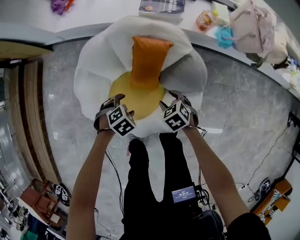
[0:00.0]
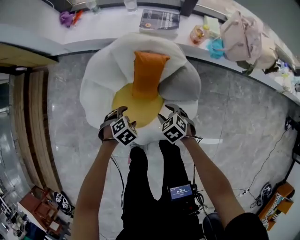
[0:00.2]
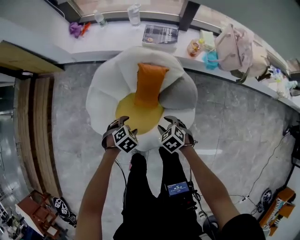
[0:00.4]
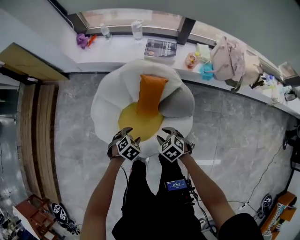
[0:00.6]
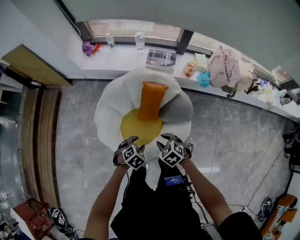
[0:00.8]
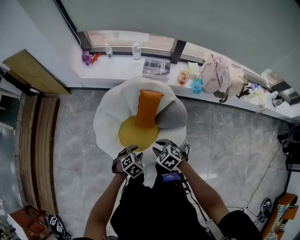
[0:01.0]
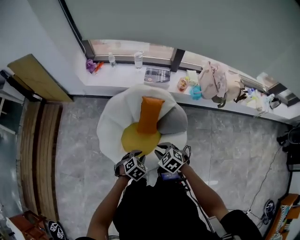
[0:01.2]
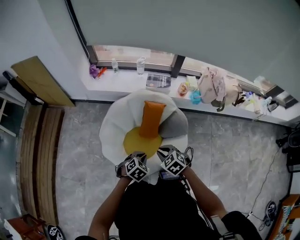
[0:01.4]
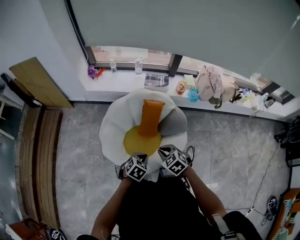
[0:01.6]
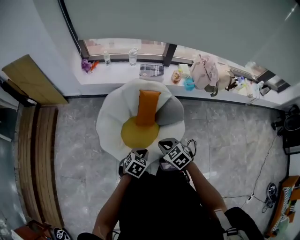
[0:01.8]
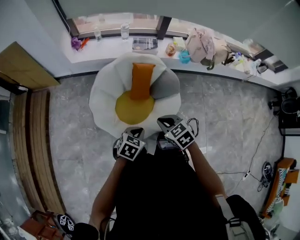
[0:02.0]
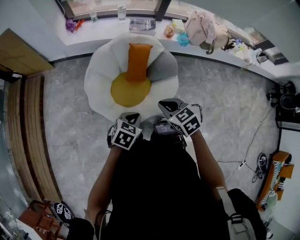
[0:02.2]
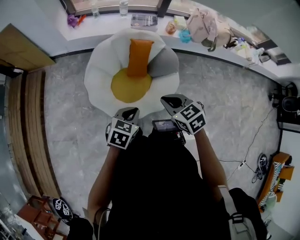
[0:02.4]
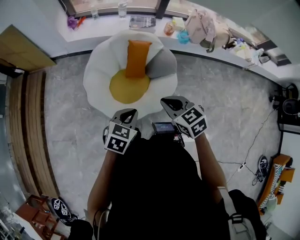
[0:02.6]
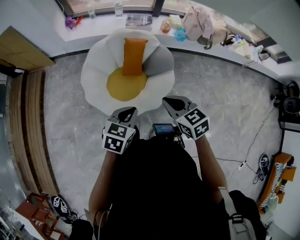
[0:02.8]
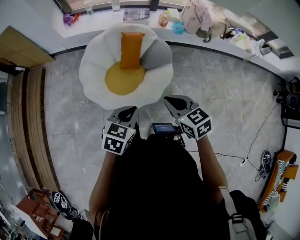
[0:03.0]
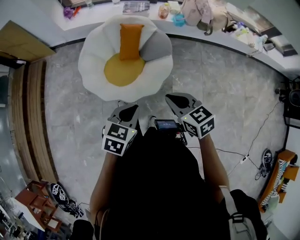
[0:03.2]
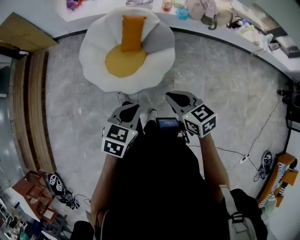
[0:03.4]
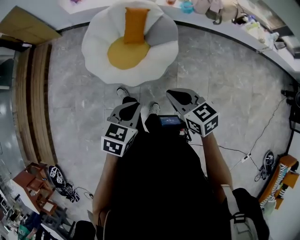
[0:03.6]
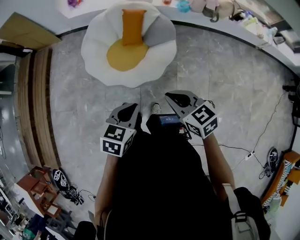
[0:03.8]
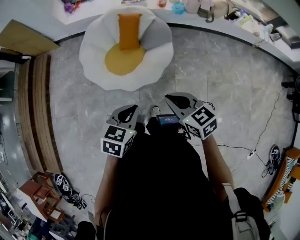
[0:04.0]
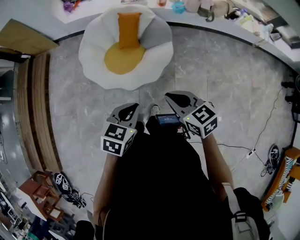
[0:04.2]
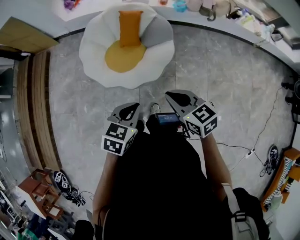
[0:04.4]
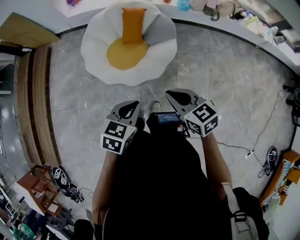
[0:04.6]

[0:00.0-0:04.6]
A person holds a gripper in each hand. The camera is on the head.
0:00.0 to 0:01.6: Both grippers move upward, approximately 30 cm. The left gripper changes its angle by some 30 degrees, and closes up. The right gripper closes.
0:01.6 to 0:03.0: The right gripper goes approximately 20 cm backward, to the right and upward, and swivels approximately 30 degrees. Meanwhile the left gripper is displaced backward, upward and to the right by approximately 20 cm.
0:03.0 to 0:04.6: The two grippers go some 15 cm backward and to the right.

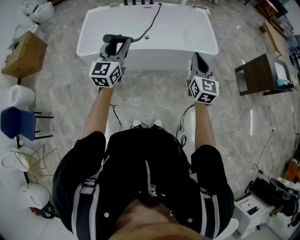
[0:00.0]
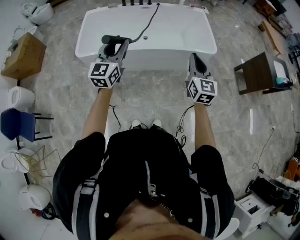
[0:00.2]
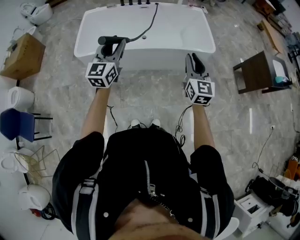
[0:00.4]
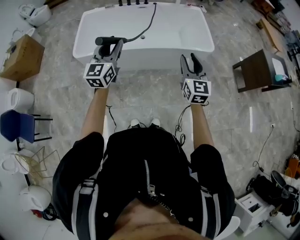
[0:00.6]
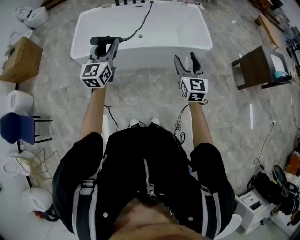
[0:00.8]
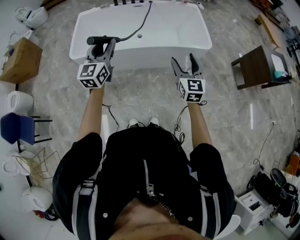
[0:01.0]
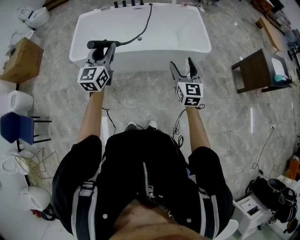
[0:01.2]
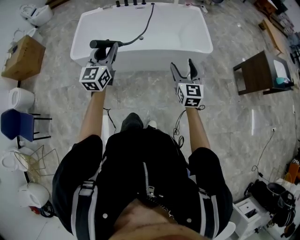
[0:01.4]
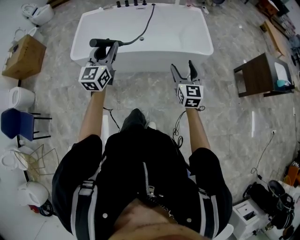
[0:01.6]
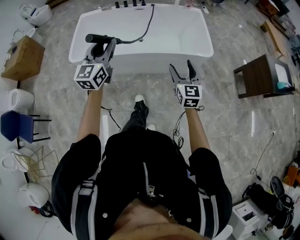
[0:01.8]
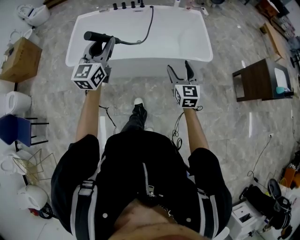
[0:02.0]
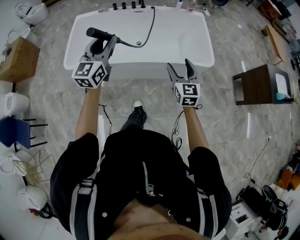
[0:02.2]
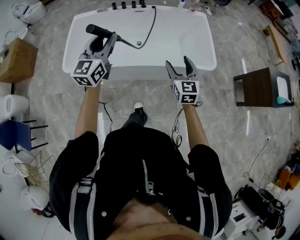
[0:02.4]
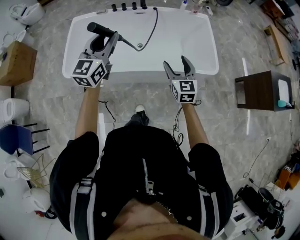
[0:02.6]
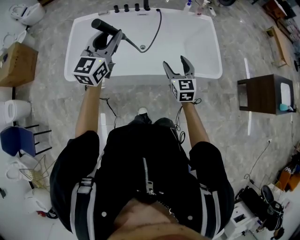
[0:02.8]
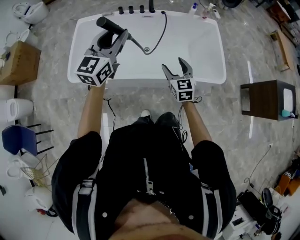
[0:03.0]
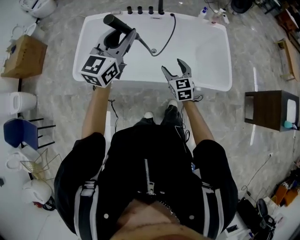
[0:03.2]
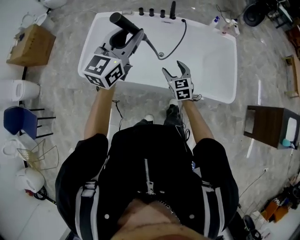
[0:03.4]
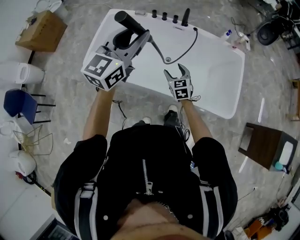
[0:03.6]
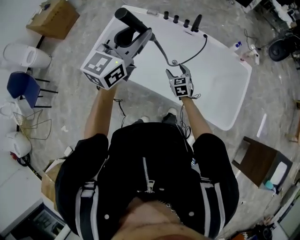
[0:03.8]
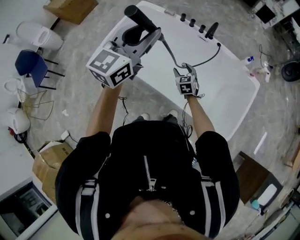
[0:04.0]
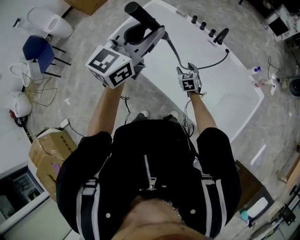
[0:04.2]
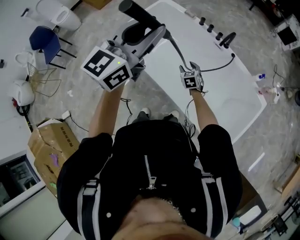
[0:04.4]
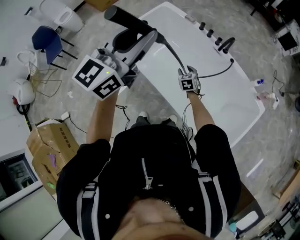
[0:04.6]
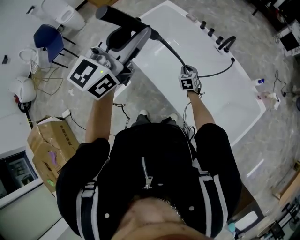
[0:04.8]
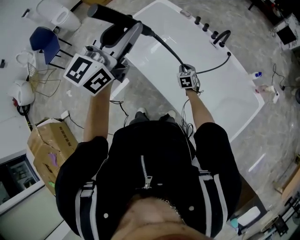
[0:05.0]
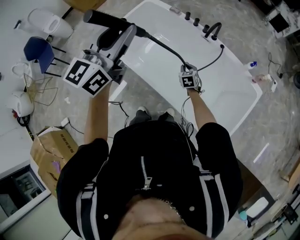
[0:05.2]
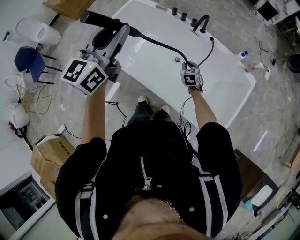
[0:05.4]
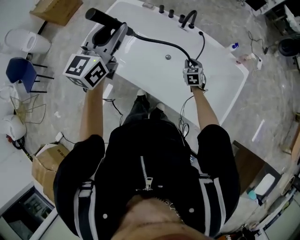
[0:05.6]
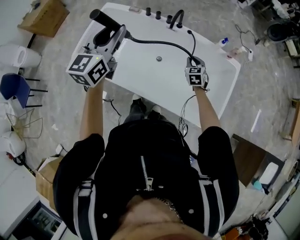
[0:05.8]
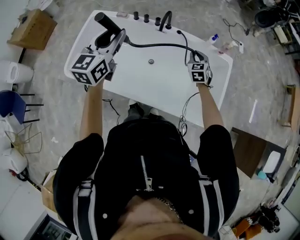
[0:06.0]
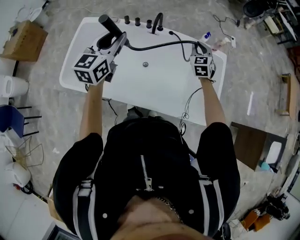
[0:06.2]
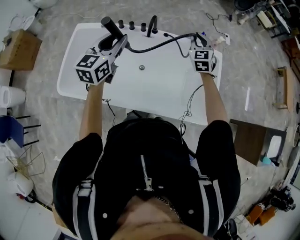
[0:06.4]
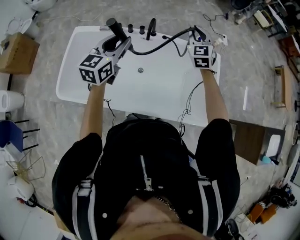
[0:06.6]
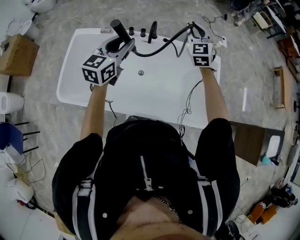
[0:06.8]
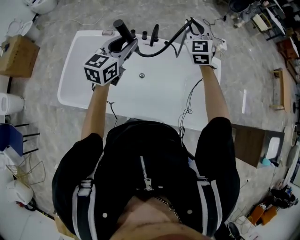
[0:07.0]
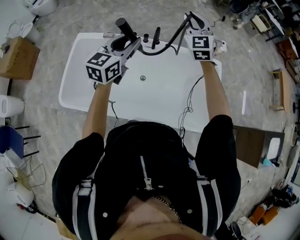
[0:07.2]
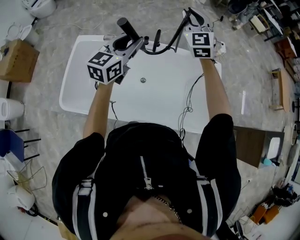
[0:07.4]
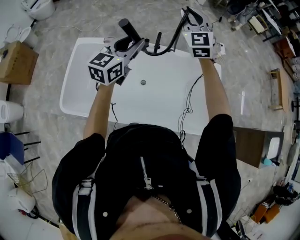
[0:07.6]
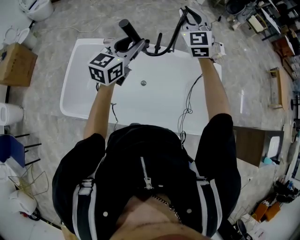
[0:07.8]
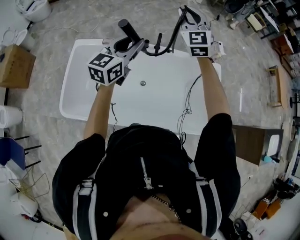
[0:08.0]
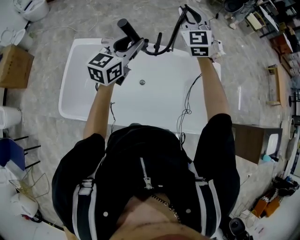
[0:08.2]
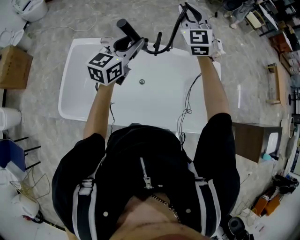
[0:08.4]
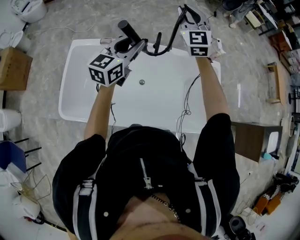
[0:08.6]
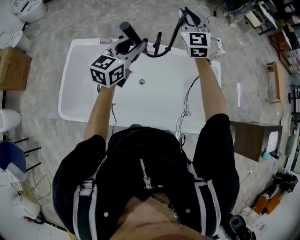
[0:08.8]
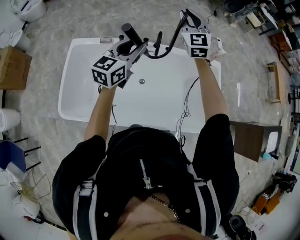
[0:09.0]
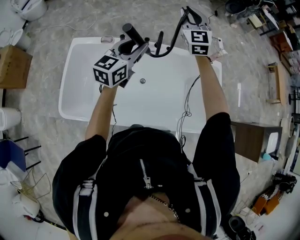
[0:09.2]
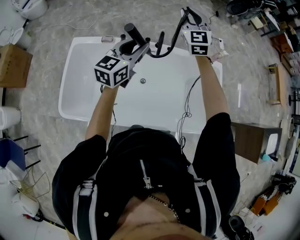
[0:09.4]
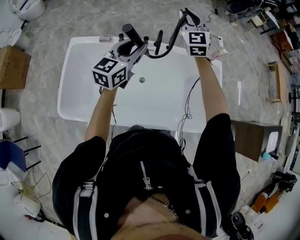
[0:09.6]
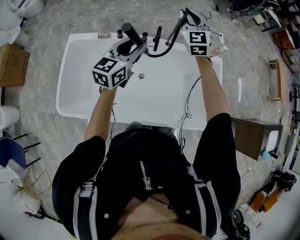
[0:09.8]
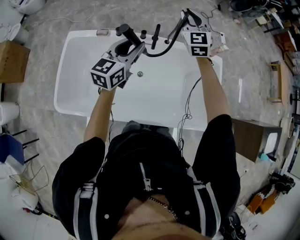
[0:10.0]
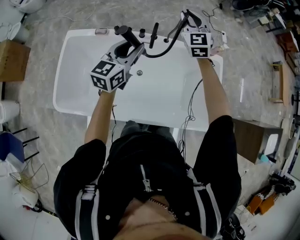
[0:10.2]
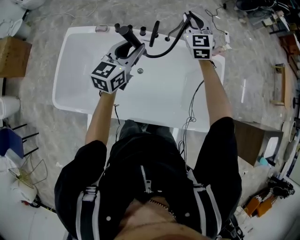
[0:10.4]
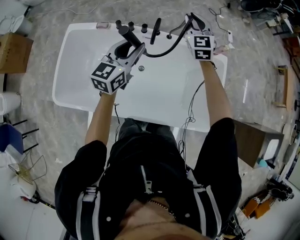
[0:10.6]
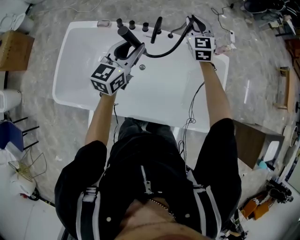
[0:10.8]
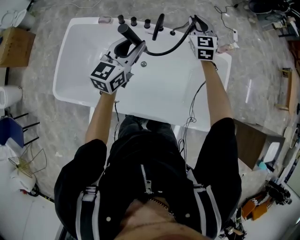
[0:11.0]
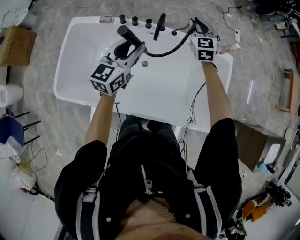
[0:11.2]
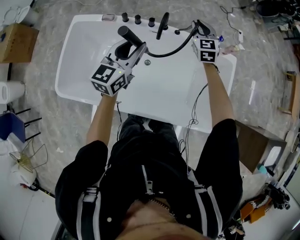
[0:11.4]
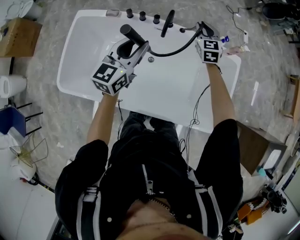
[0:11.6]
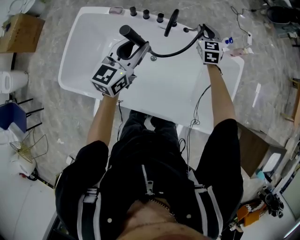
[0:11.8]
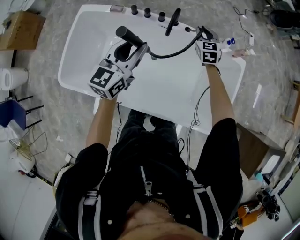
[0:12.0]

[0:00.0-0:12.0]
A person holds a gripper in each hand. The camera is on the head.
0:00.0 to 0:01.6: The left gripper changes place by some 5 cm. Meanwhile the right gripper moves downward, approximately 5 cm, and opens.
0:01.6 to 0:03.0: The right gripper is displaced forward and to the left by some 35 cm. The left gripper moves forward, approximately 35 cm.
0:03.0 to 0:04.4: The right gripper moves about 30 cm, and swivels about 50 degrees, while the left gripper travels upward by some 10 cm, and turns by approximately 30 degrees.
0:04.4 to 0:06.0: The right gripper ends up about 35 cm from where it was, swivels roughly 30 degrees, and closes its fingers, while the left gripper changes place by some 15 cm.
0:06.0 to 0:07.6: The left gripper heads forward, covering approximately 15 cm, and turns by approximately 20 degrees, while the right gripper travels upward and to the left by about 35 cm, and tilts its fingers roughly 30 degrees upward.
0:07.6 to 0:09.0: The left gripper changes place by approximately 5 cm; the right gripper shifts about 5 cm forward.
0:09.0 to 0:10.4: The right gripper shifts some 10 cm downward; the left gripper shifts some 5 cm downward.
0:10.4 to 0:12.0: The right gripper moves downward, approximately 20 cm, and rotates about 20 degrees.

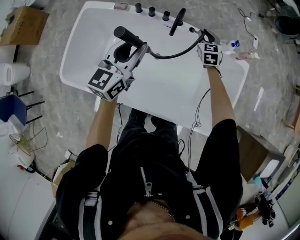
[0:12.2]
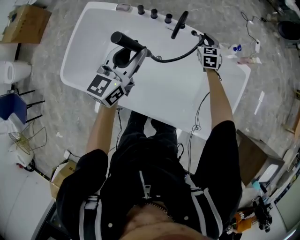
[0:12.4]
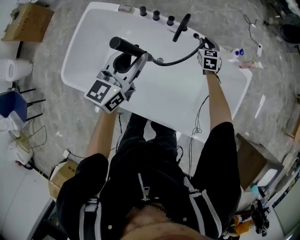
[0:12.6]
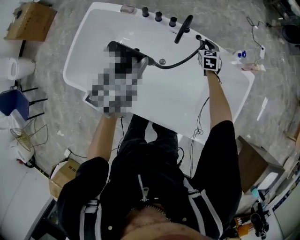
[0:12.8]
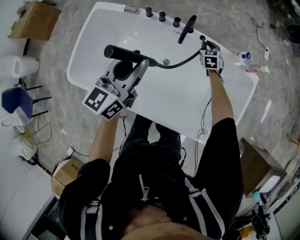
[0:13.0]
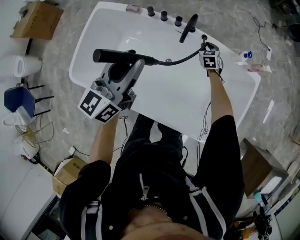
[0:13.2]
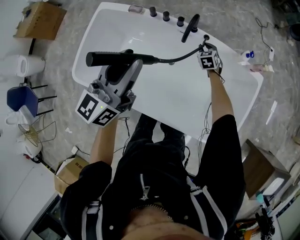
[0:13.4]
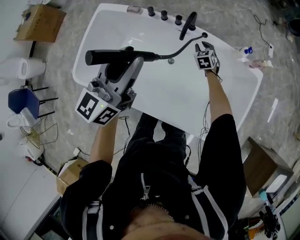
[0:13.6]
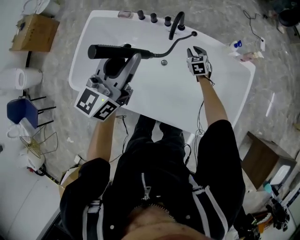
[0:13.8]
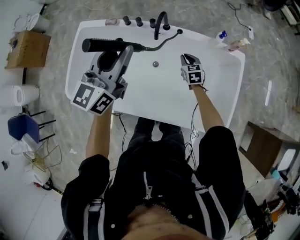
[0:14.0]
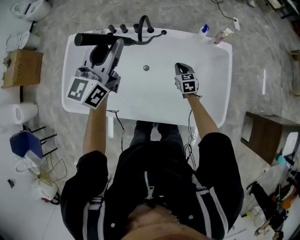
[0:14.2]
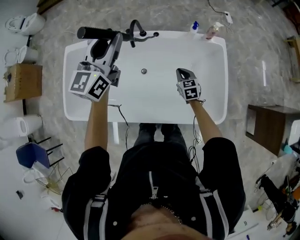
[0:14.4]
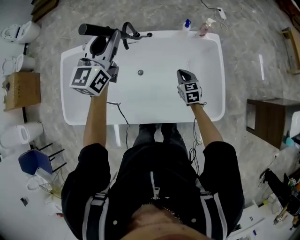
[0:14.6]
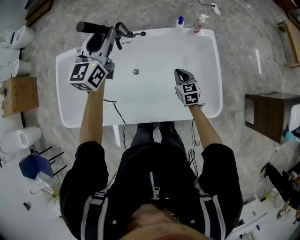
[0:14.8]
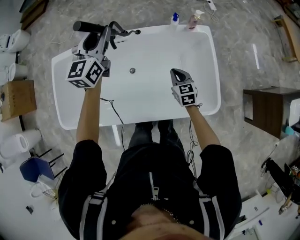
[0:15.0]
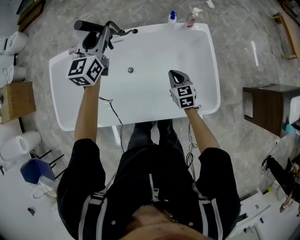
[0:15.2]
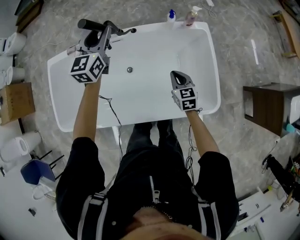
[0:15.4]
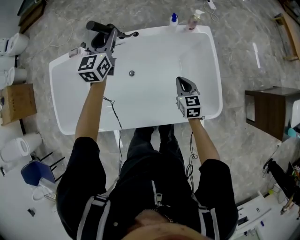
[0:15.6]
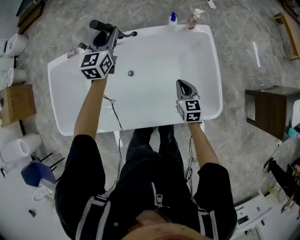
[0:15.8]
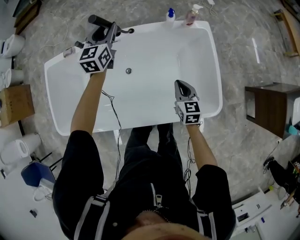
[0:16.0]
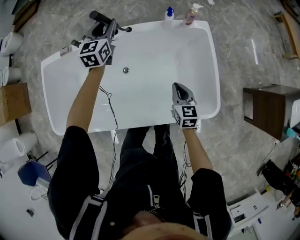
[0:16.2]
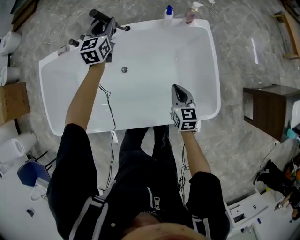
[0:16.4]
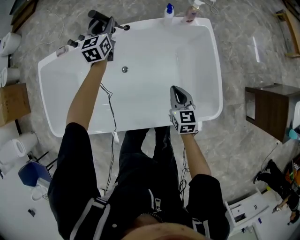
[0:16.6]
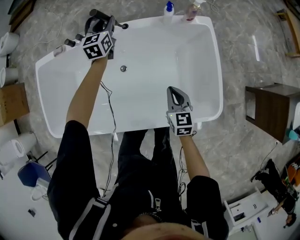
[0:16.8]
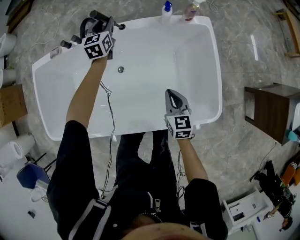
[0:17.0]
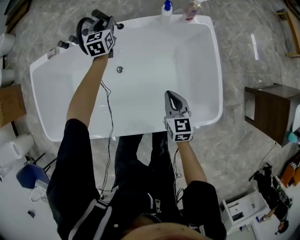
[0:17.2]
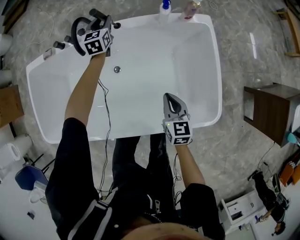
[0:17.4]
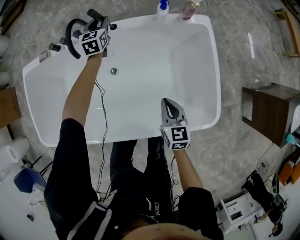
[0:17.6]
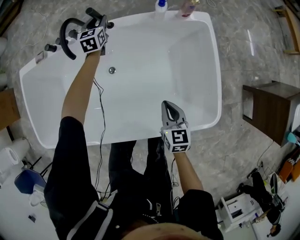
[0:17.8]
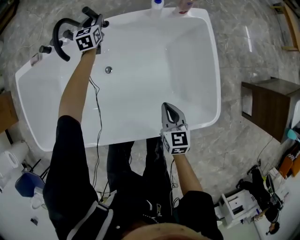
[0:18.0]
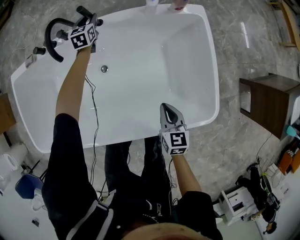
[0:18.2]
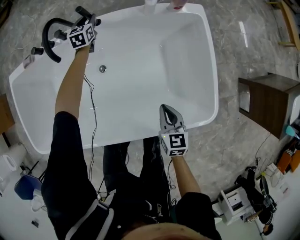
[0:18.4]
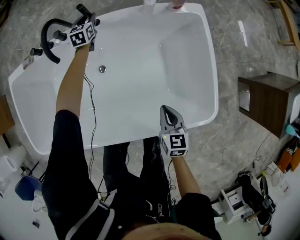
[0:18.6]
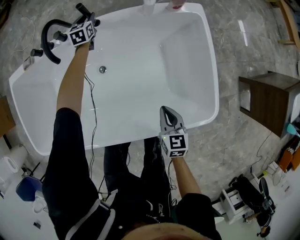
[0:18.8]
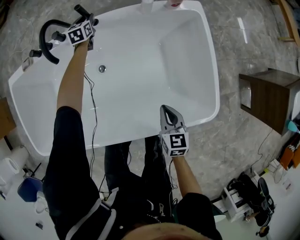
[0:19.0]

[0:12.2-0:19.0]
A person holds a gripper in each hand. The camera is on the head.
0:12.2 to 0:13.6: The right gripper is displaced downward by about 15 cm. Meanwhile the left gripper heads upward, covering about 10 cm.
0:13.6 to 0:15.0: The left gripper heads to the right and forward, covering roughly 20 cm, while the right gripper shifts about 35 cm backward, to the right and upward, rotates some 30 degrees, and closes.
0:15.0 to 0:16.2: The right gripper shifts by roughly 5 cm, while the left gripper shifts approximately 20 cm downward and forward.
0:16.2 to 0:17.6: The left gripper shifts approximately 25 cm downward and forward; the right gripper is displaced downward by some 5 cm.
0:17.6 to 0:19.0: The right gripper shifts by roughly 5 cm. The left gripper moves downward and forward, approximately 15 cm.
